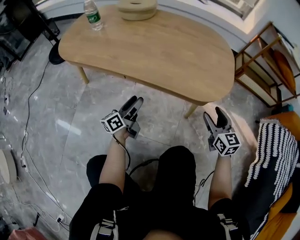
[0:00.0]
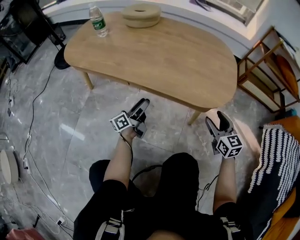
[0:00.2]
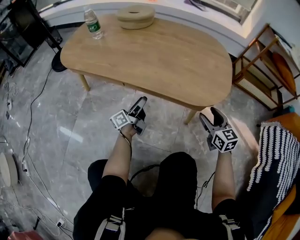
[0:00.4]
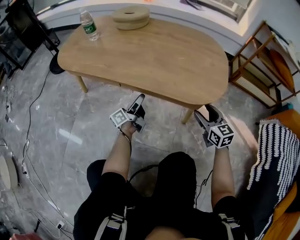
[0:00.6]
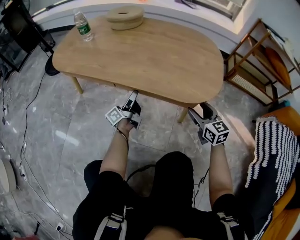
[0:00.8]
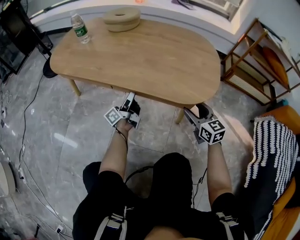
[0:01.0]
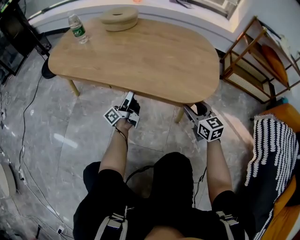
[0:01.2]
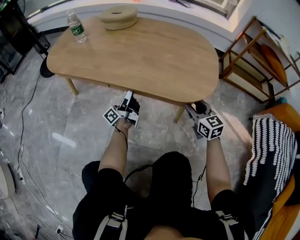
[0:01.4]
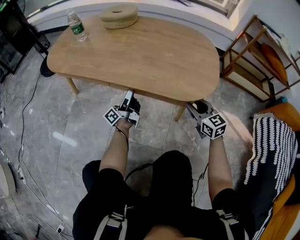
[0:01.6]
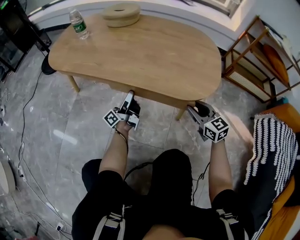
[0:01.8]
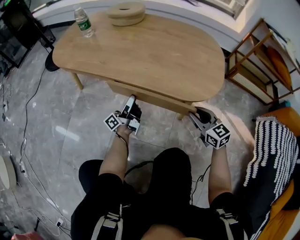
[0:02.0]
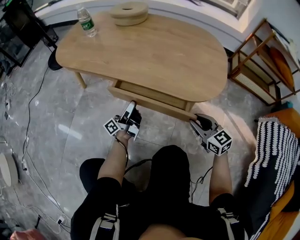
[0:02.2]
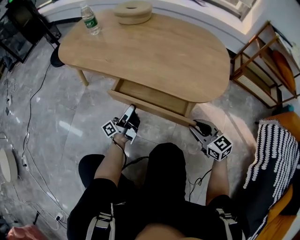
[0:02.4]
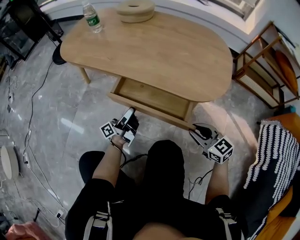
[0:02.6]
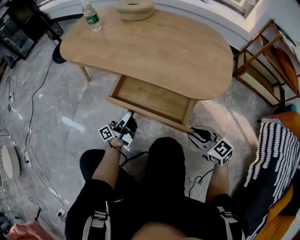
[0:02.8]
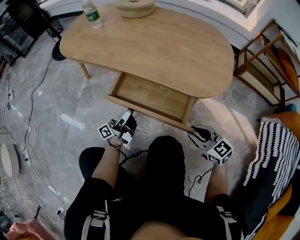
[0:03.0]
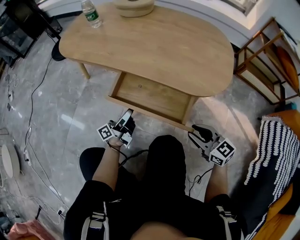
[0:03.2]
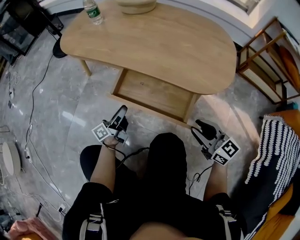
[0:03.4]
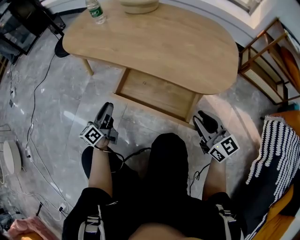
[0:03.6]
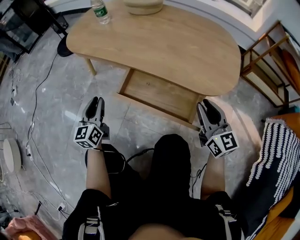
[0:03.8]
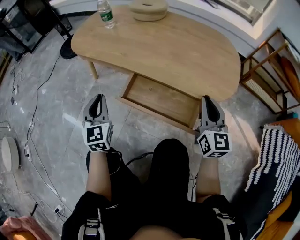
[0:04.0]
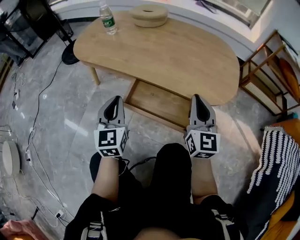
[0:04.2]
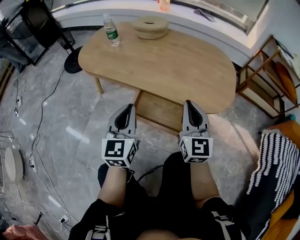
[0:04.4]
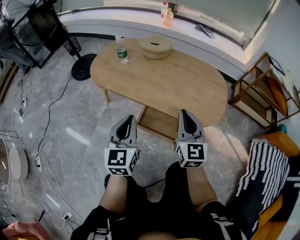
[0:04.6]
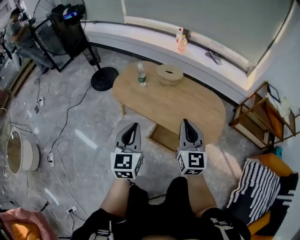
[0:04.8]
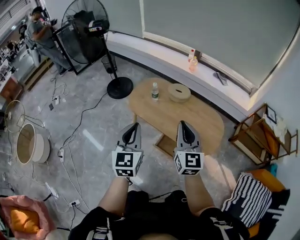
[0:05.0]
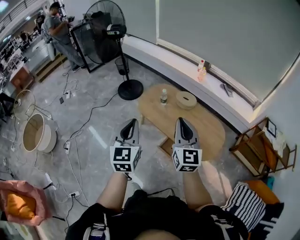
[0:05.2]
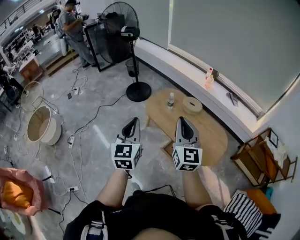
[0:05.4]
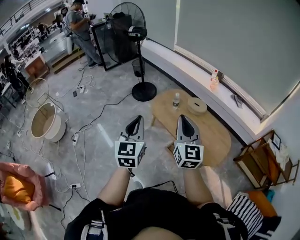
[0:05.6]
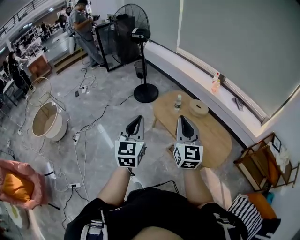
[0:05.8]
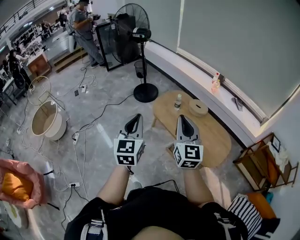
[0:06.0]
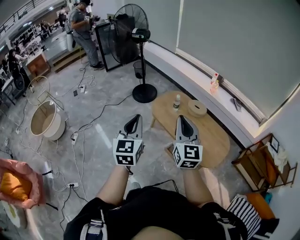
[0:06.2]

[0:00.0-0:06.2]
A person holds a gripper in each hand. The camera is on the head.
0:00.0 to 0:01.6: The right gripper changes place by roughly 5 cm, and closes up; the left gripper travels forward by some 5 cm, and rotates approximately 30 degrees.
0:01.6 to 0:03.2: The grippers both shift backward and to the left by approximately 15 cm. The right gripper changes its angle by roughly 20 degrees.
0:03.2 to 0:04.6: The right gripper travels upward, forward and to the left by about 40 cm, rotates roughly 40 degrees, and closes; the left gripper moves upward, about 40 cm, rolls clockwise, seen from behind, by about 70 degrees, and closes.
0:04.6 to 0:06.2: The grippers both shift upward by about 50 cm. The right gripper changes its angle by approximately 30 degrees. The left gripper rotates about 30 degrees.

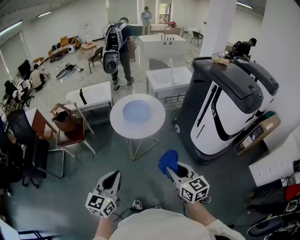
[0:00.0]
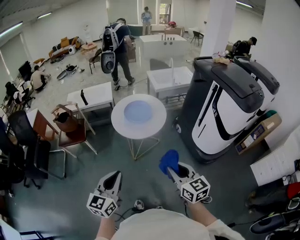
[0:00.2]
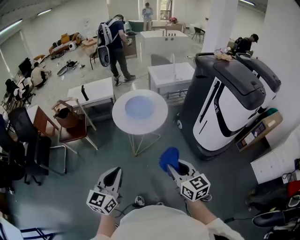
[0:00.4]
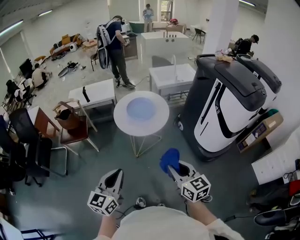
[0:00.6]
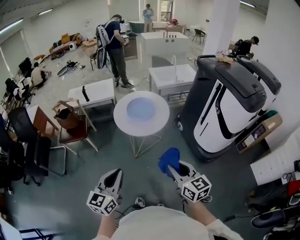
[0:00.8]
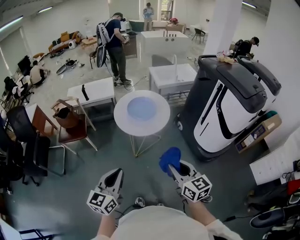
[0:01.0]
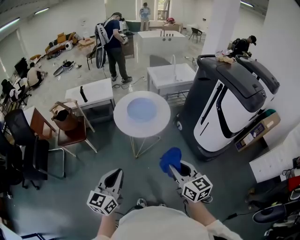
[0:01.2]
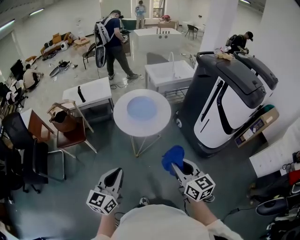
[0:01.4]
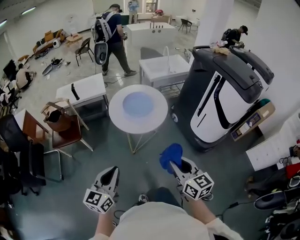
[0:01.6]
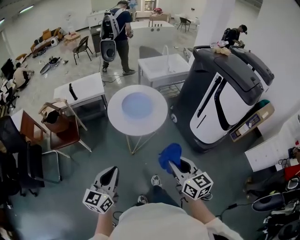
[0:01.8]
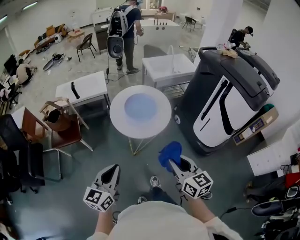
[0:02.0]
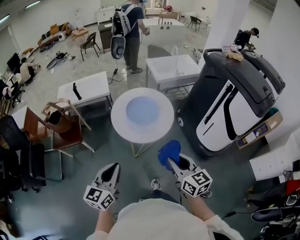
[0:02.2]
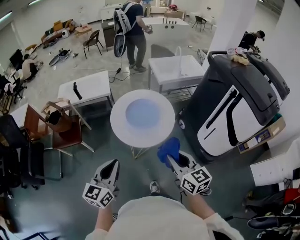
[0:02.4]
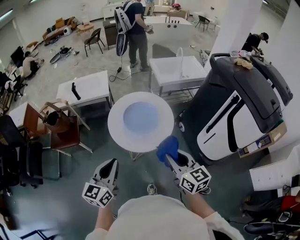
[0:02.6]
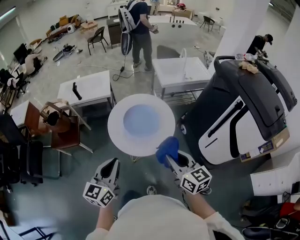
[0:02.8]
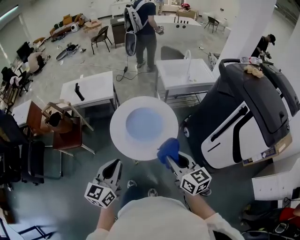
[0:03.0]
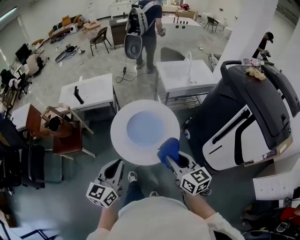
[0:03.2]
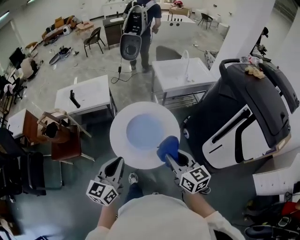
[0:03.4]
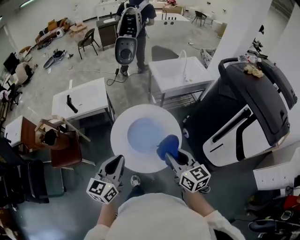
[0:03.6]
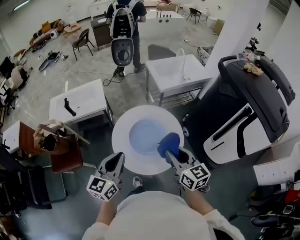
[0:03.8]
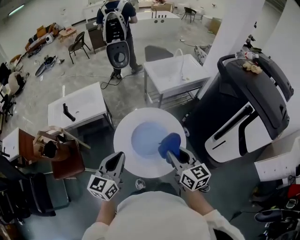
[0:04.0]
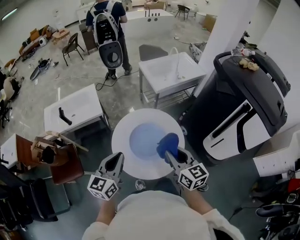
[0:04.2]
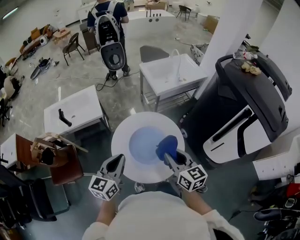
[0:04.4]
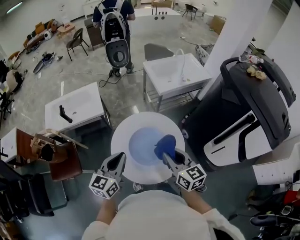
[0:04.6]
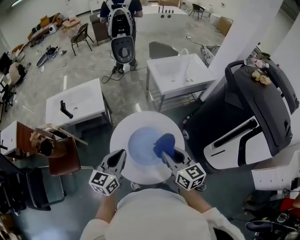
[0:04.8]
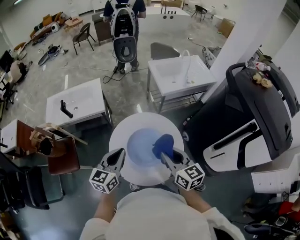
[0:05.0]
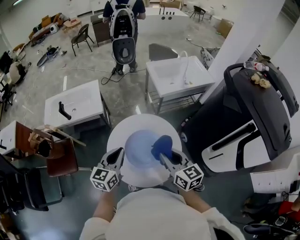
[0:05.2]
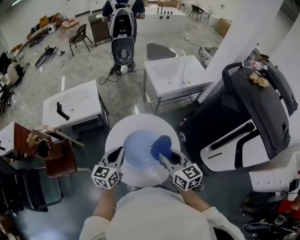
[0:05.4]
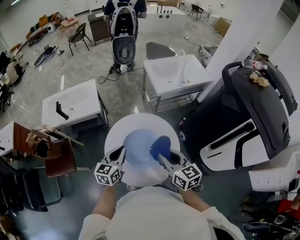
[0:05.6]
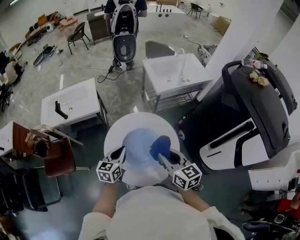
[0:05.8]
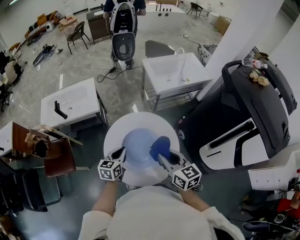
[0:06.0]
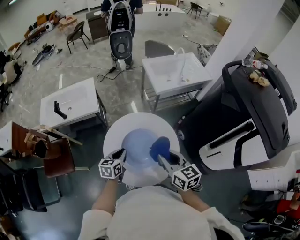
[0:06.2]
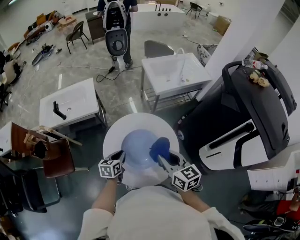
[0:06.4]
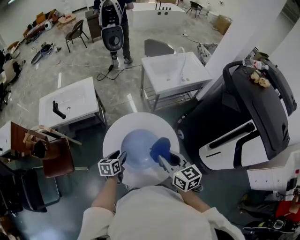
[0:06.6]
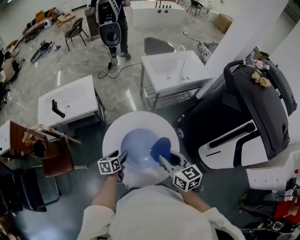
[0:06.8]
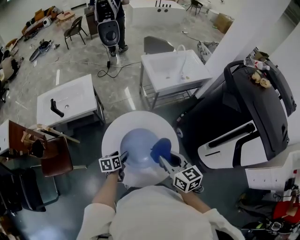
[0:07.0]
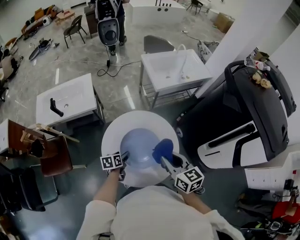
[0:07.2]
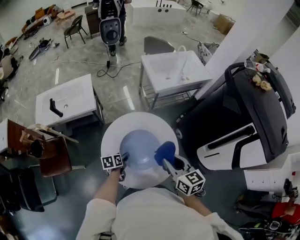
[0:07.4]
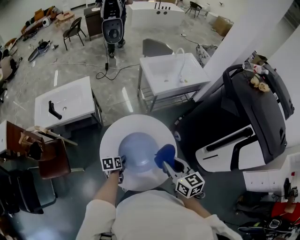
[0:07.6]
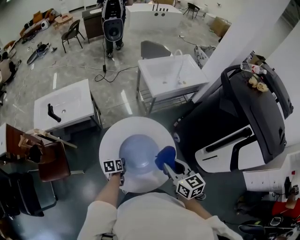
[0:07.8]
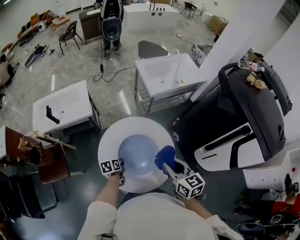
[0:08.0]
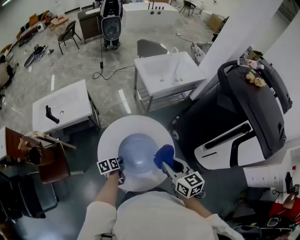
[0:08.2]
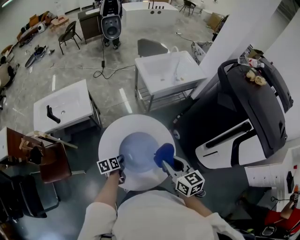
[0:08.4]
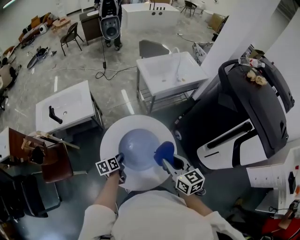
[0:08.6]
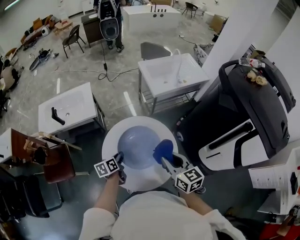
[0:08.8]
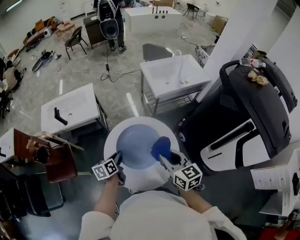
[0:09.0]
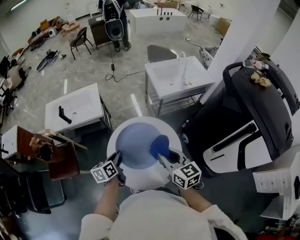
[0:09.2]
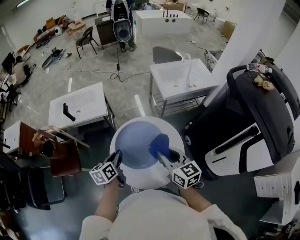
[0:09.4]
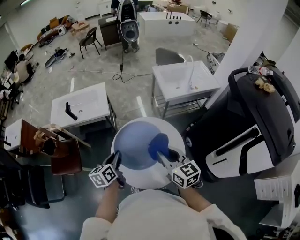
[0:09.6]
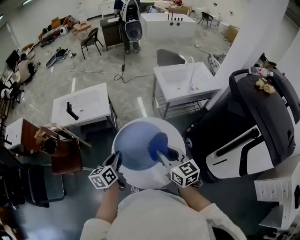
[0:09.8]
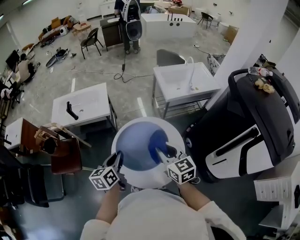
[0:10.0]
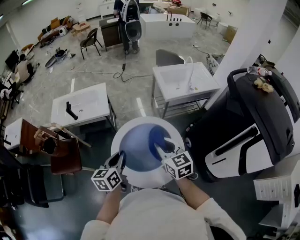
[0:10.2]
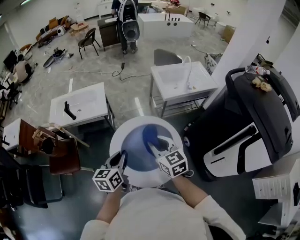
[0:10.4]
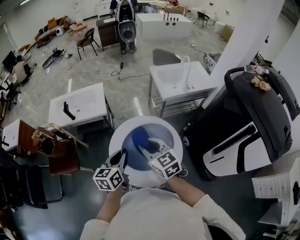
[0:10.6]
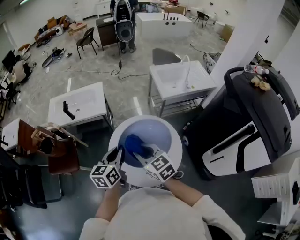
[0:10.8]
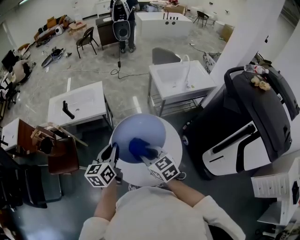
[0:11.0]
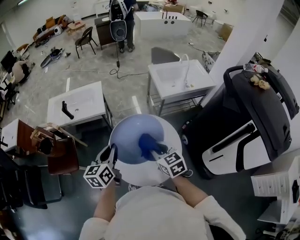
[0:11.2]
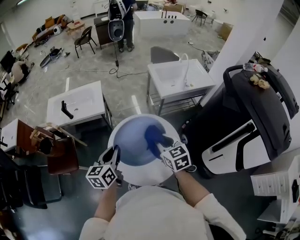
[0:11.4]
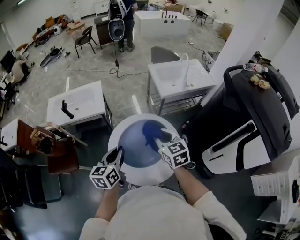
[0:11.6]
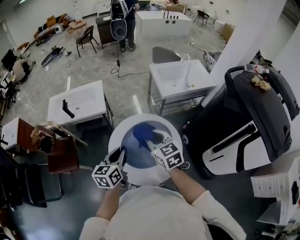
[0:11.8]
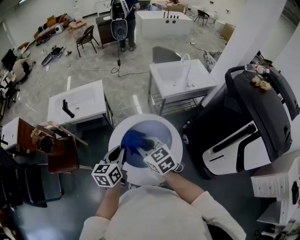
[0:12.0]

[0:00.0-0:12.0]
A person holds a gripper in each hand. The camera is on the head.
0:00.0 to 0:01.6: The right gripper shifts some 5 cm to the left; the left gripper heads to the left and forward, covering roughly 10 cm.
0:01.6 to 0:03.0: The grippers both shift forward by some 25 cm.
0:03.0 to 0:04.4: The left gripper goes approximately 20 cm forward. Meanwhile the right gripper travels forward and to the left by about 20 cm.
0:04.4 to 0:06.0: The right gripper moves approximately 5 cm. Meanwhile the left gripper is displaced downward and forward by roughly 15 cm, and swivels about 20 degrees.
0:06.0 to 0:07.6: The left gripper moves downward, some 15 cm, changes its angle by approximately 30 degrees, and opens up.
0:07.6 to 0:09.0: The left gripper shifts about 15 cm upward, changes its angle by roughly 20 degrees, and closes its fingers.
0:09.0 to 0:10.4: The right gripper moves to the left, roughly 5 cm. Meanwhile the left gripper shifts some 15 cm upward and backward, and rotates about 20 degrees.
0:10.4 to 0:12.0: The right gripper moves left and right over about 10 cm, changing direction 2 times.

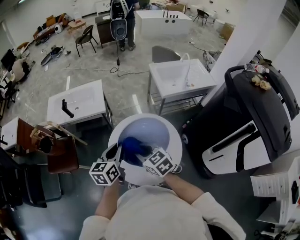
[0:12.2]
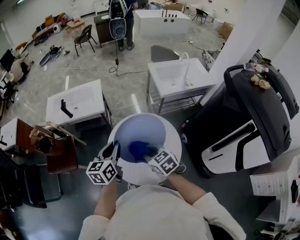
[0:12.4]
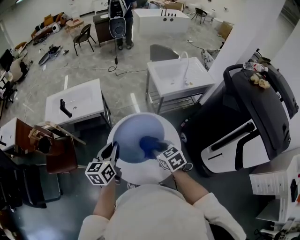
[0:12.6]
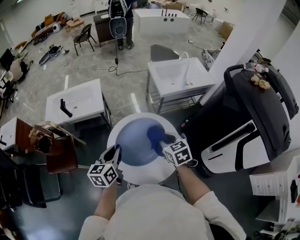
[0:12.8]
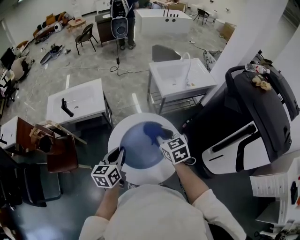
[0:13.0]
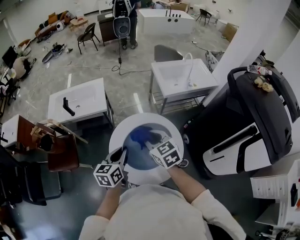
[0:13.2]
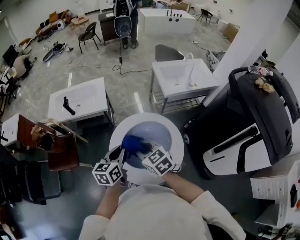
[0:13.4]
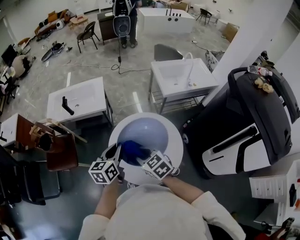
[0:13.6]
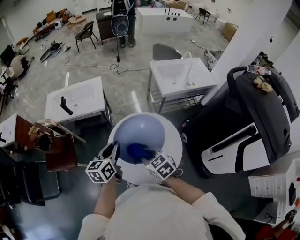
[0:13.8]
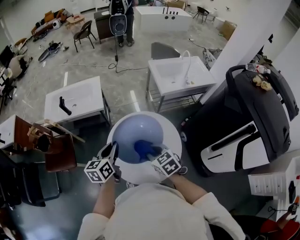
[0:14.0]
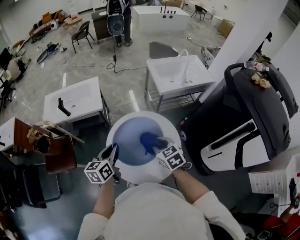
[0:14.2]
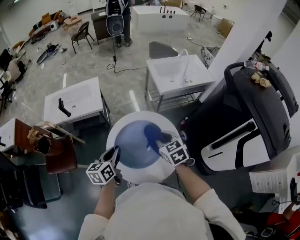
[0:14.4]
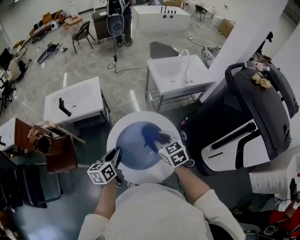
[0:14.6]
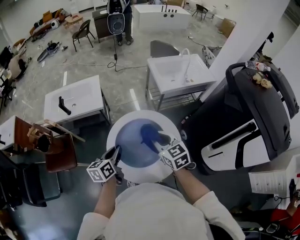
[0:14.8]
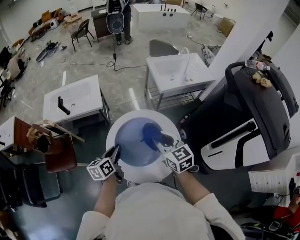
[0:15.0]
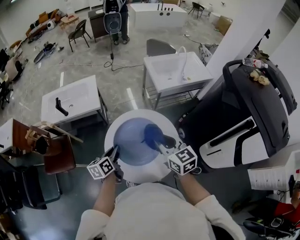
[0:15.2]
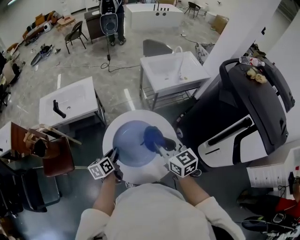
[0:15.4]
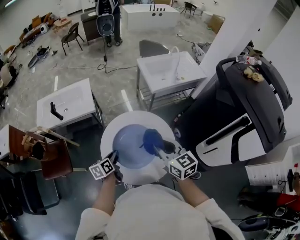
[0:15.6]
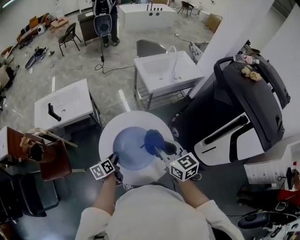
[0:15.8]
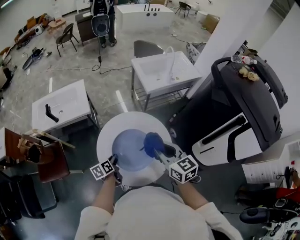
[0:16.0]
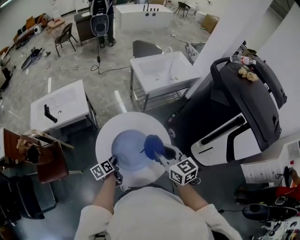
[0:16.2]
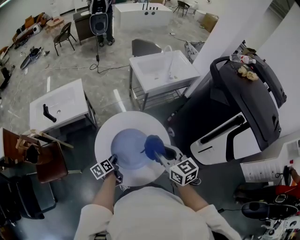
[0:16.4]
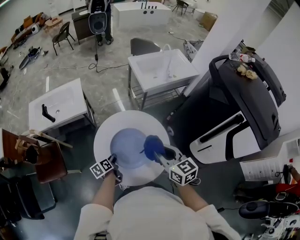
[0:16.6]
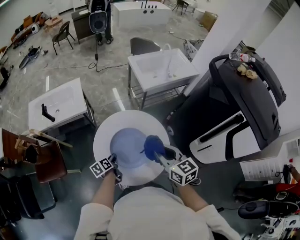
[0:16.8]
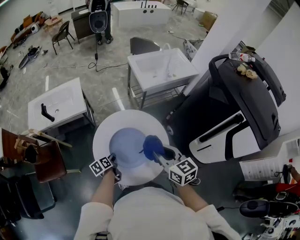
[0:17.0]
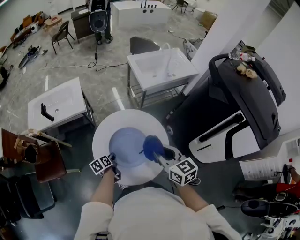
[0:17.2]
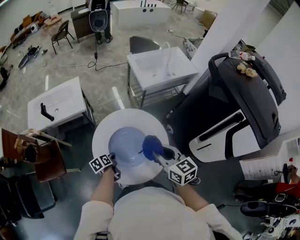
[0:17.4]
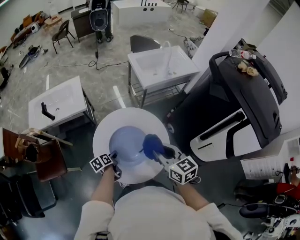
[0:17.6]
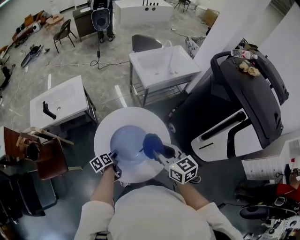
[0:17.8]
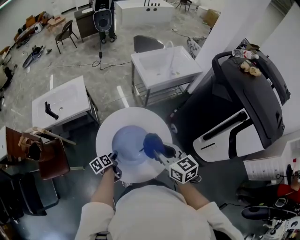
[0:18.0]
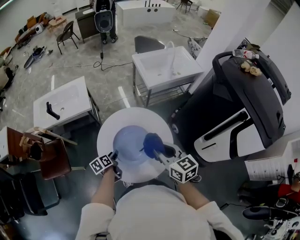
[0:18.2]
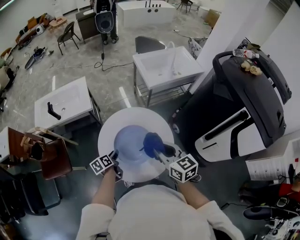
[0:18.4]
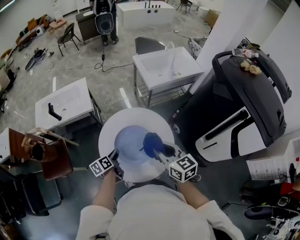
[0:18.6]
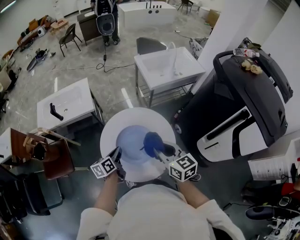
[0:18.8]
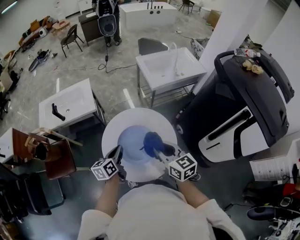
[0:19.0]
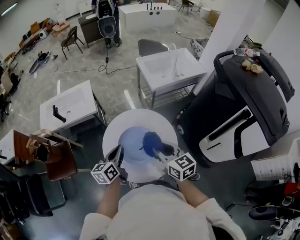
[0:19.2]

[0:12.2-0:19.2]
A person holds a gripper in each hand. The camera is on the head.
0:12.2 to 0:13.6: The right gripper reaches some 15 cm to the right, then returns.
0:13.6 to 0:15.0: The left gripper shifts roughly 5 cm downward. Meanwhile the right gripper shifts some 15 cm to the right and upward, and swivels approximately 20 degrees.
0:15.0 to 0:16.4: The left gripper heads downward, covering about 15 cm, and swivels about 20 degrees. The right gripper goes roughly 5 cm backward.
0:16.4 to 0:17.8: The left gripper opens.
0:17.8 to 0:19.2: The left gripper travels upward by roughly 20 cm, turns by roughly 40 degrees, and closes its fingers.
